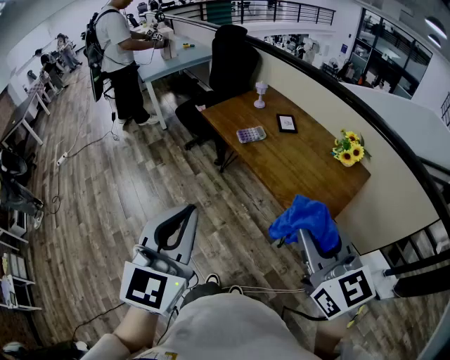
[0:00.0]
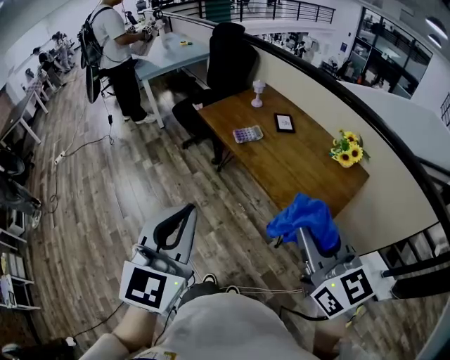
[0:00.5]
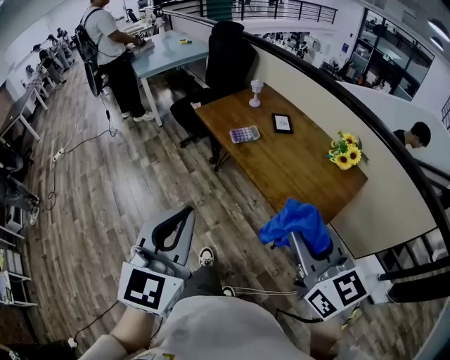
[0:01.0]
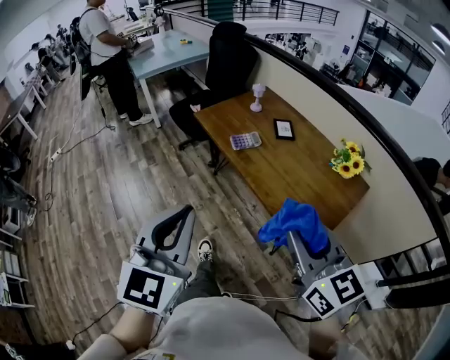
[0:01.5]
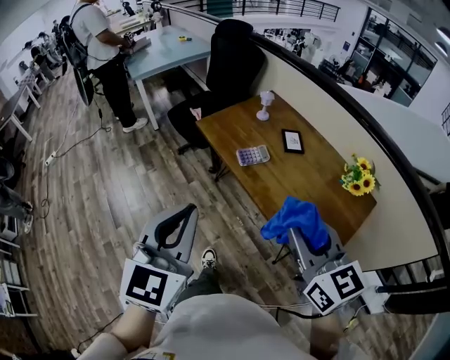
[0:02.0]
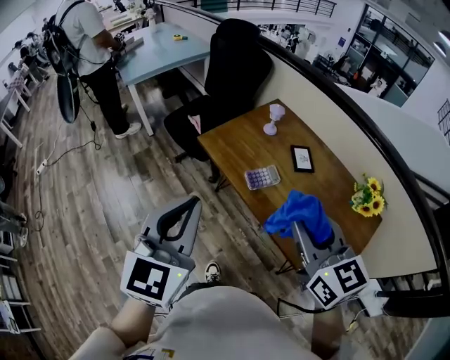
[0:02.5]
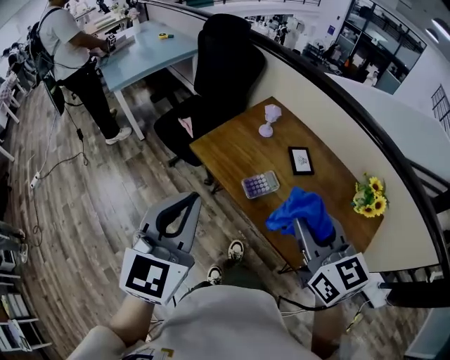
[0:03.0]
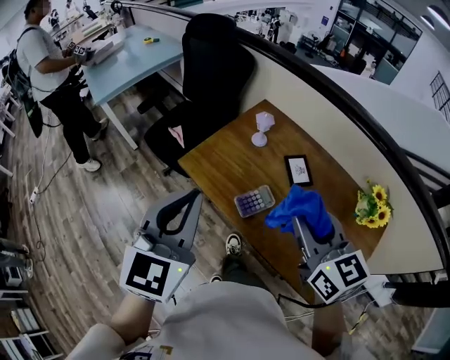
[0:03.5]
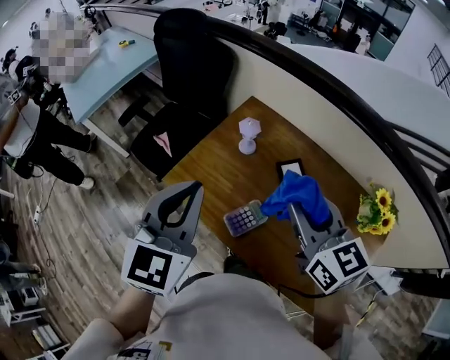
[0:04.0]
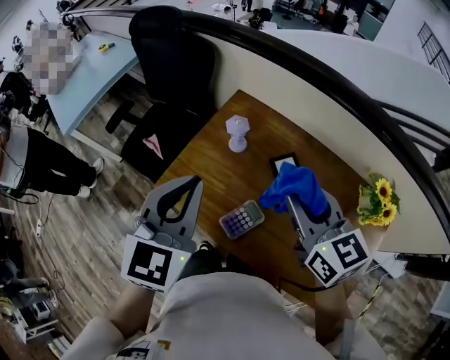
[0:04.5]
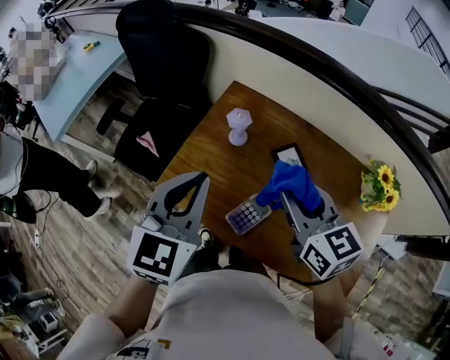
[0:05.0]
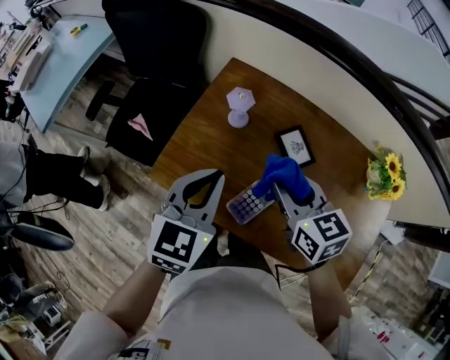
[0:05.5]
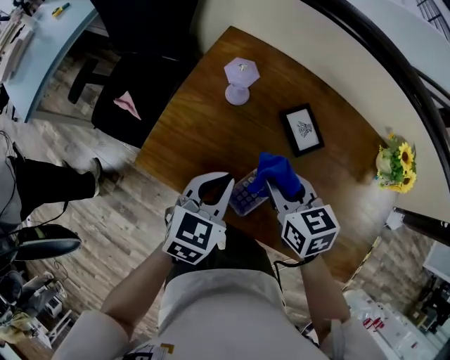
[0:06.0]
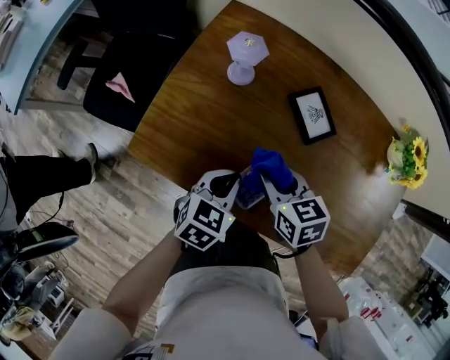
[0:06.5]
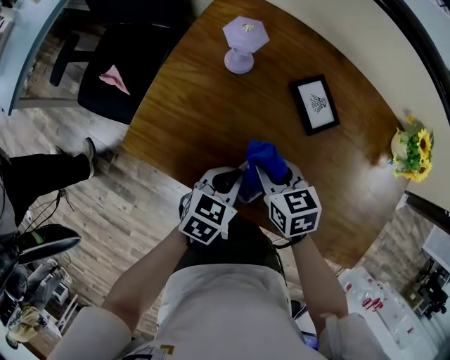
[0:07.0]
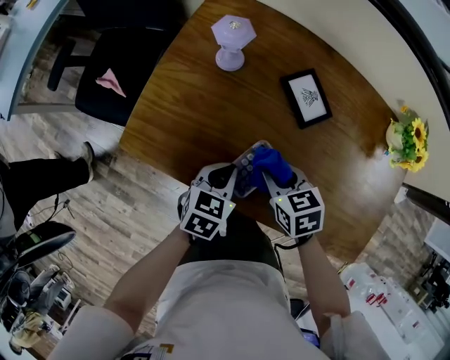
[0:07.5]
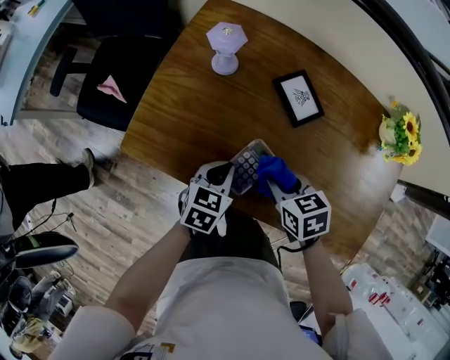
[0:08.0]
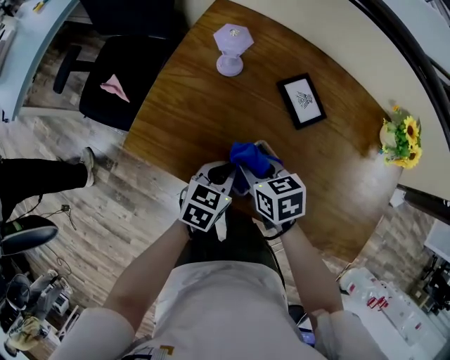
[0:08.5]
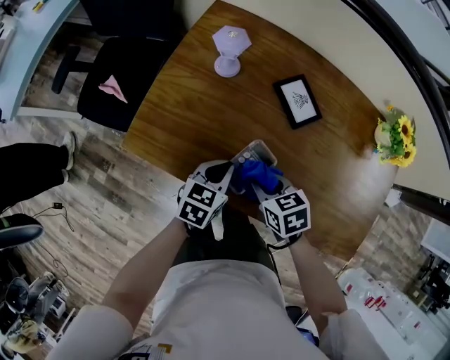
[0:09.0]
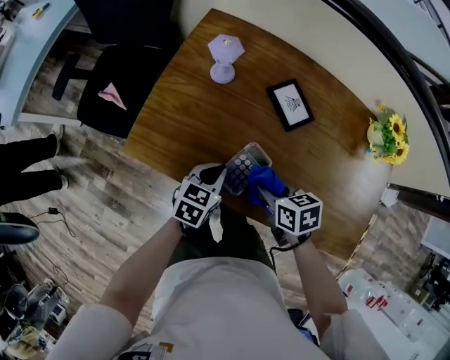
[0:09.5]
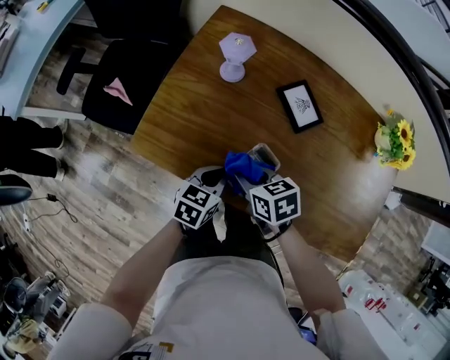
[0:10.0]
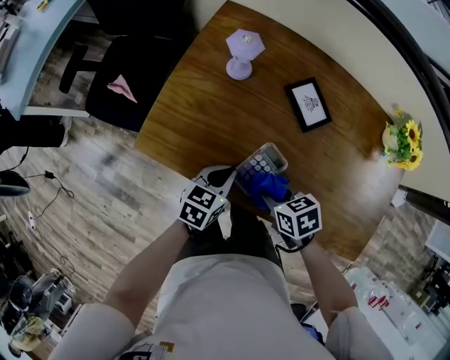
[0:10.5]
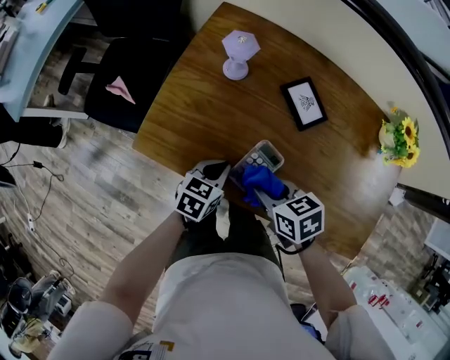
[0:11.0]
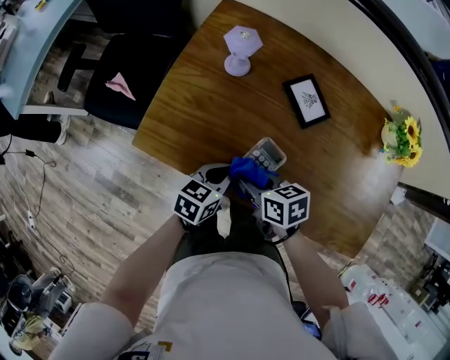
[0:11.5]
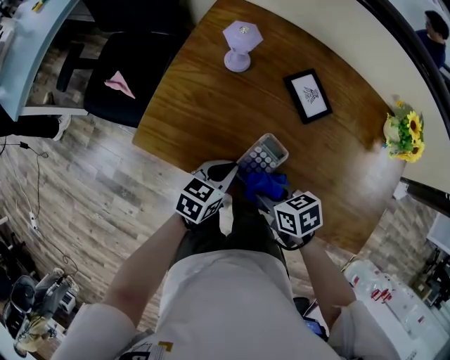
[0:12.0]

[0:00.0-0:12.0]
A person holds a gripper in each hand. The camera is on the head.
0:00.0 to 0:02.0: The grippers both shift forward by some 20 cm.
0:02.0 to 0:04.0: Both grippers are carried forward, some 50 cm.
0:04.0 to 0:06.0: Both grippers move downward, about 25 cm. The right gripper turns by approximately 30 degrees, while the left gripper rotates about 30 degrees.
0:06.0 to 0:08.0: The left gripper shifts some 15 cm downward, while the right gripper goes roughly 10 cm downward and backward.
0:08.0 to 0:10.0: The right gripper goes left and right, roughly 10 cm each way, reversing 2 times.
0:10.0 to 0:12.0: The right gripper is displaced backward by approximately 10 cm.

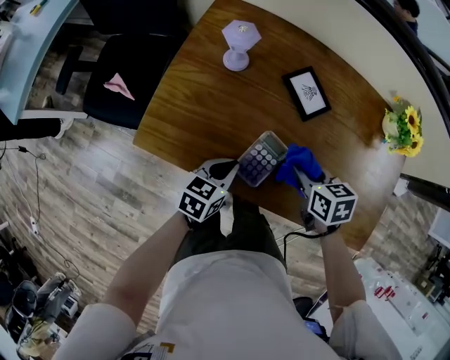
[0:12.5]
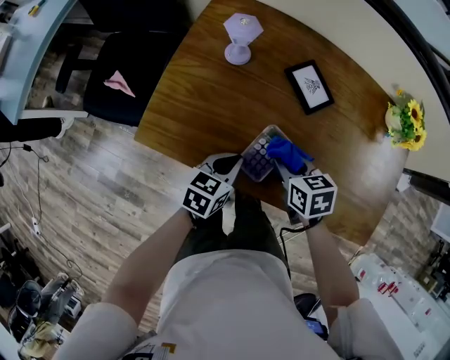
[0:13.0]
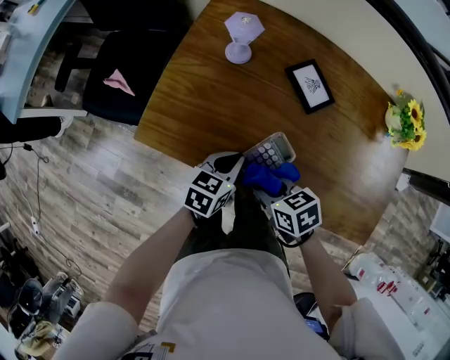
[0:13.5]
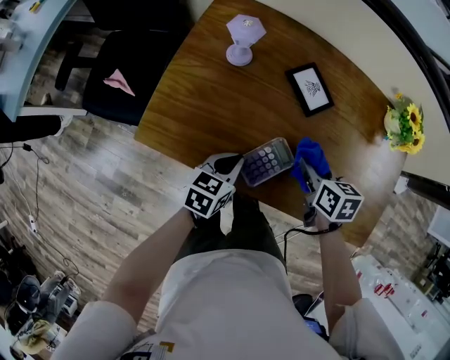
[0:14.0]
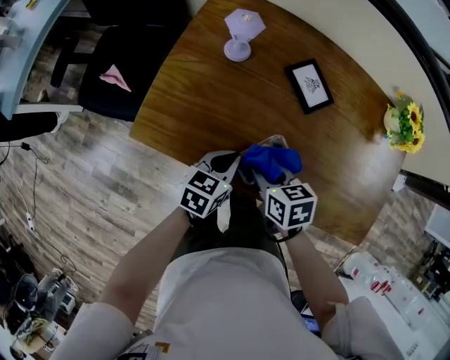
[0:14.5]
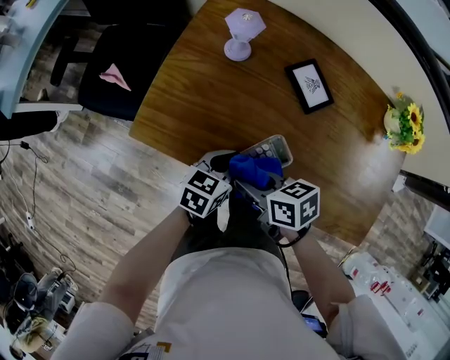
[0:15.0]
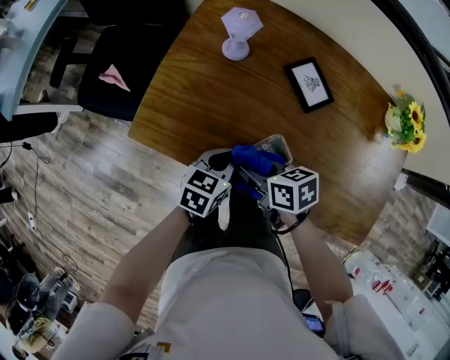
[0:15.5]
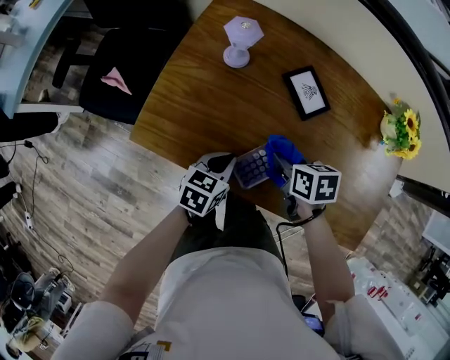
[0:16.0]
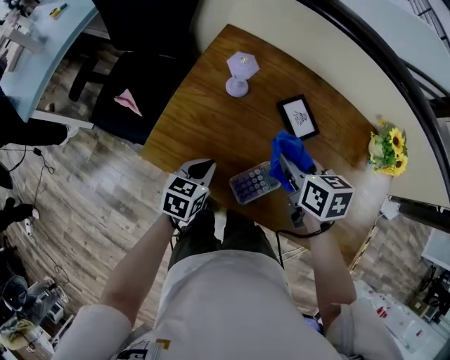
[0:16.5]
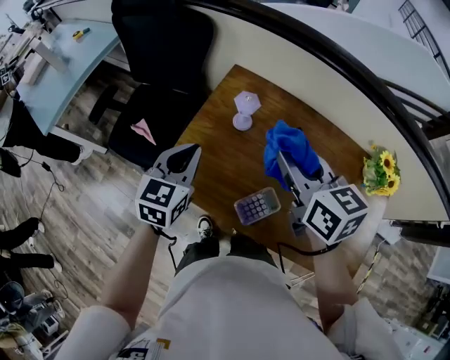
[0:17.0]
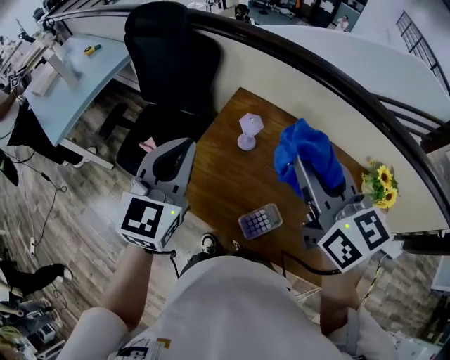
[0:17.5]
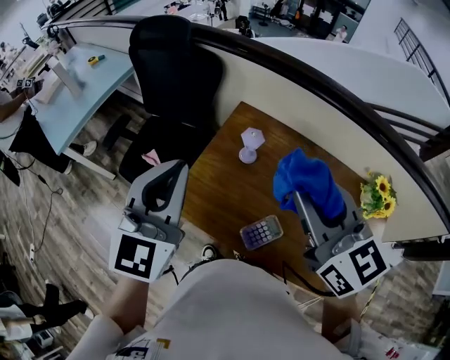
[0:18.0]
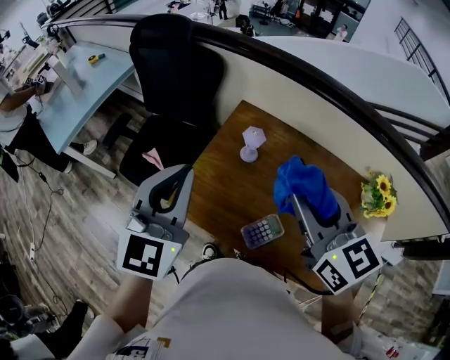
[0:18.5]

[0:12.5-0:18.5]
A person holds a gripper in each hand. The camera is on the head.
0:12.5 to 0:14.5: The right gripper goes left and right, roughly 15 cm each way, reversing 2 times.
0:14.5 to 0:16.5: The left gripper moves to the left, roughly 5 cm; the right gripper moves upward, forward and to the right, approximately 20 cm.
0:16.5 to 0:18.5: Both grippers move upward, roughly 35 cm. The left gripper points its fingers about 30 degrees further upward, while the right gripper changes its angle by some 40 degrees.

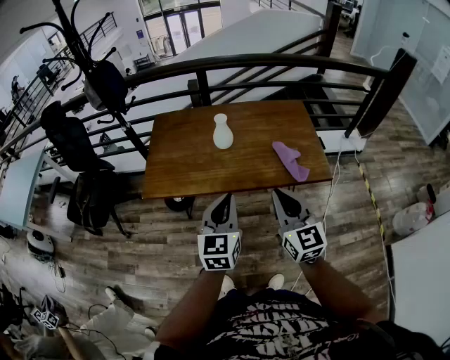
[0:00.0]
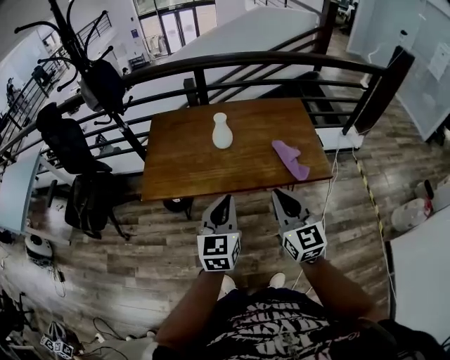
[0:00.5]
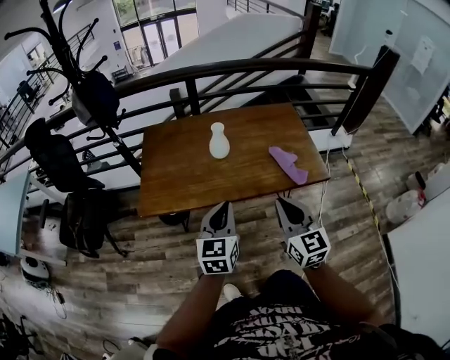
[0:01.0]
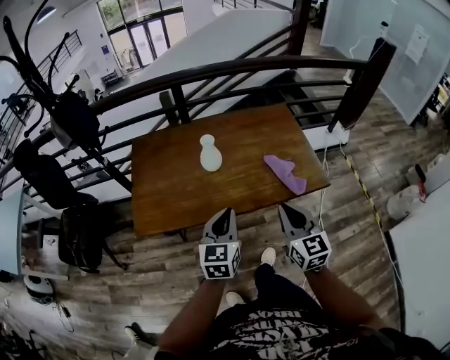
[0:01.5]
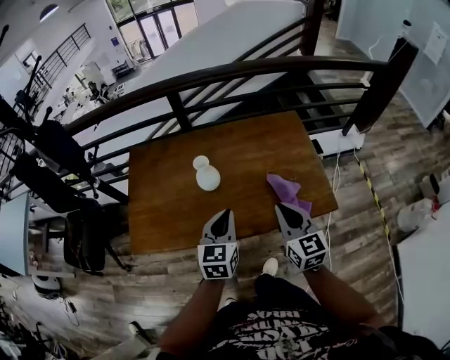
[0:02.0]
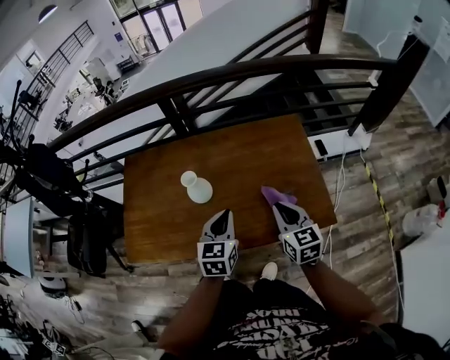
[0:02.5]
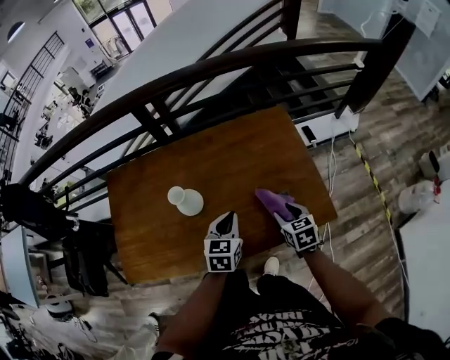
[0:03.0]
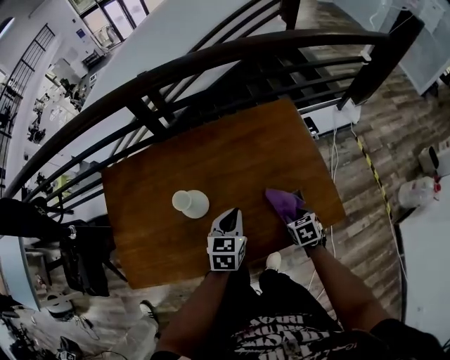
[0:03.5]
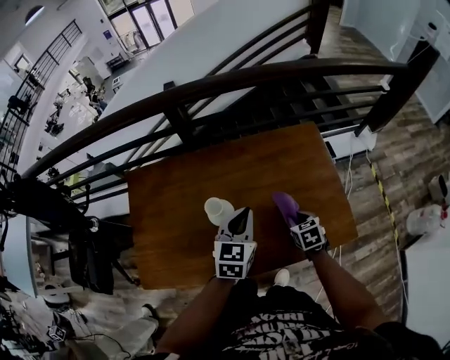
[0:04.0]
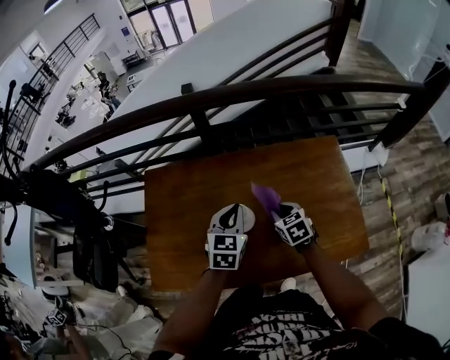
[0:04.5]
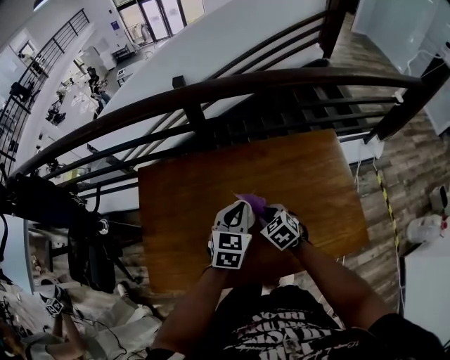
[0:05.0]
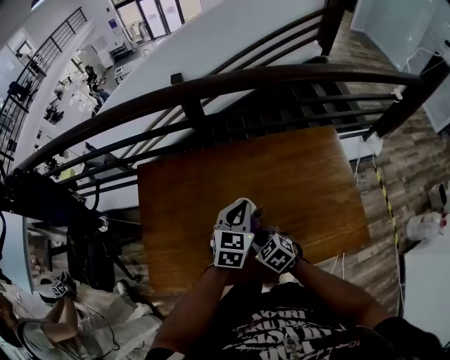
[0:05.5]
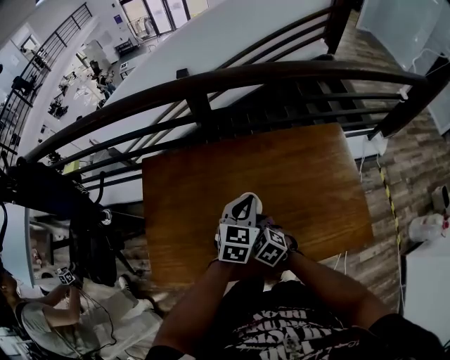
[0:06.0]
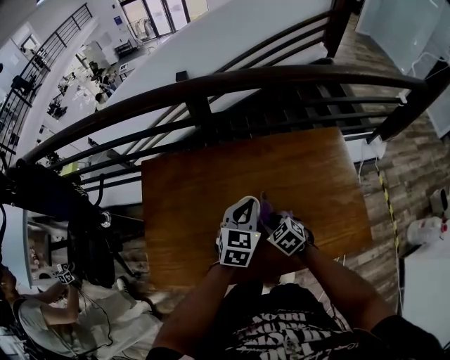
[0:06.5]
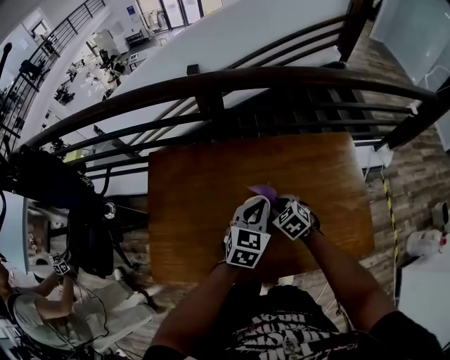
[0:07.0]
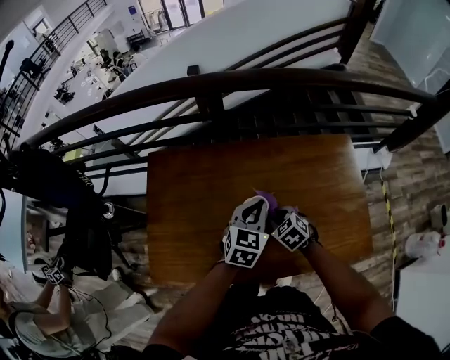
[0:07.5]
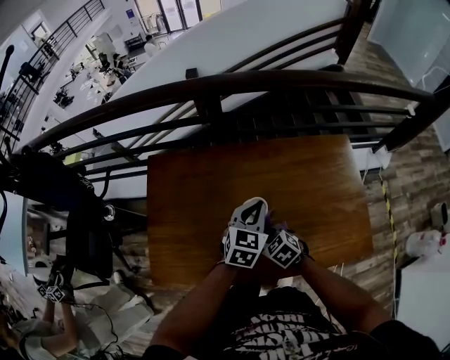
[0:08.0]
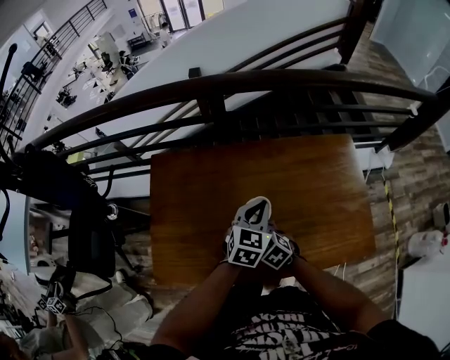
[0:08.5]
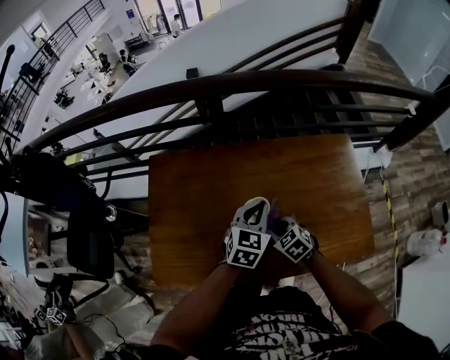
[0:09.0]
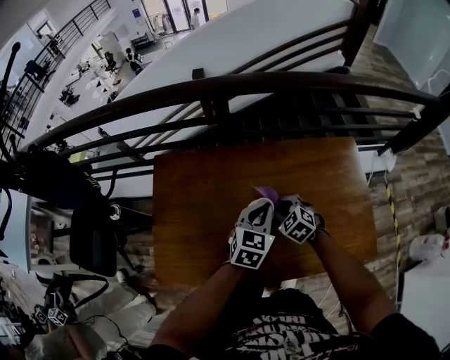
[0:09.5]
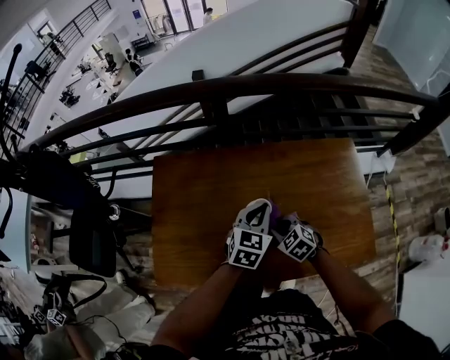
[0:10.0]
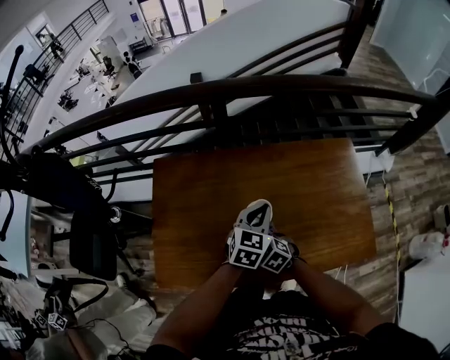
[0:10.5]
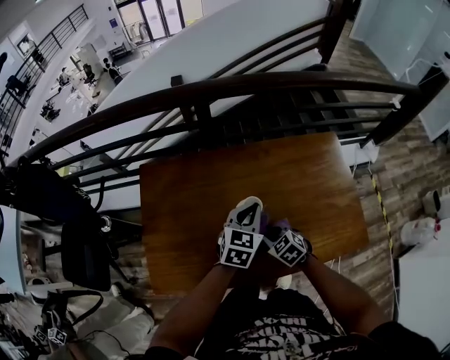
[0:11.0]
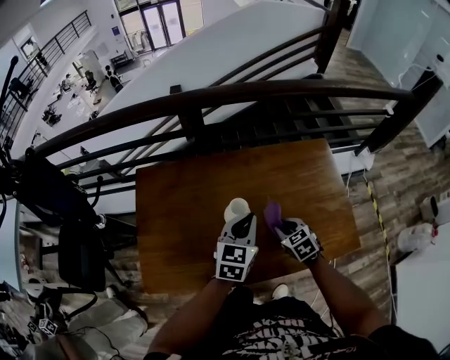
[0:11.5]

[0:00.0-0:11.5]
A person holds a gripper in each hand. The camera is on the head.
0:00.0 to 0:02.0: Both grippers move forward, roughly 20 cm.
0:02.0 to 0:04.0: The left gripper shifts about 20 cm forward; the right gripper heads downward and forward, covering roughly 25 cm, tips its fingers downward by approximately 40 degrees, and opens and closes again.
0:04.0 to 0:06.0: The right gripper is displaced to the left by some 30 cm, and swivels roughly 40 degrees, while the left gripper goes roughly 10 cm to the left and forward.
0:06.0 to 0:07.5: The right gripper heads to the right and forward, covering roughly 10 cm.
0:07.5 to 0:09.5: The right gripper reaches roughly 10 cm to the left, then returns.
0:09.5 to 0:11.5: The left gripper is displaced backward by about 5 cm. Meanwhile the right gripper travels backward and to the right by roughly 15 cm, and rotates approximately 30 degrees.
